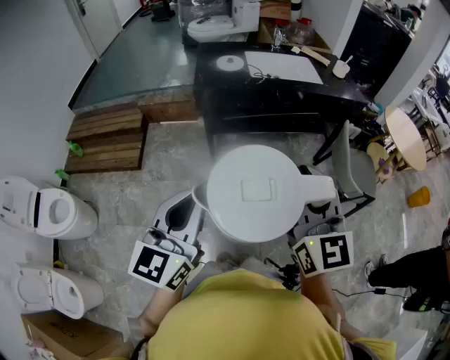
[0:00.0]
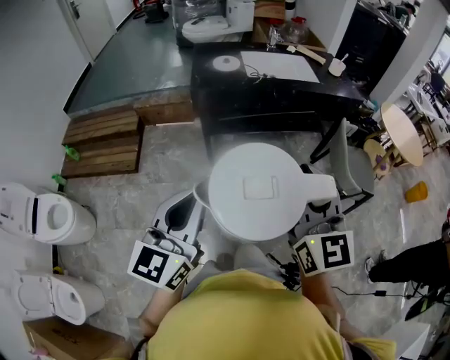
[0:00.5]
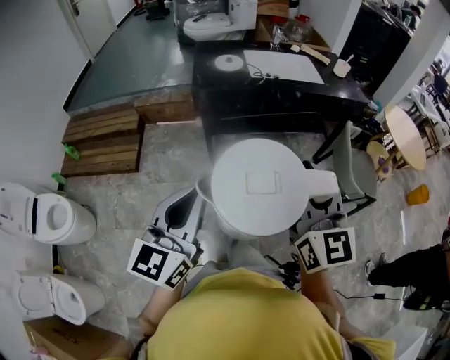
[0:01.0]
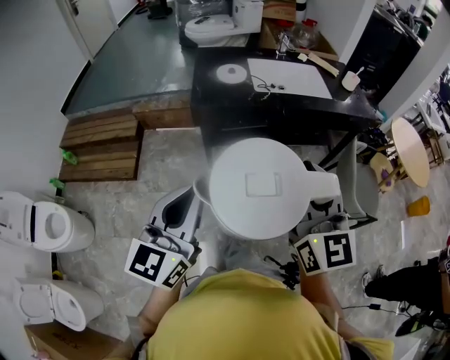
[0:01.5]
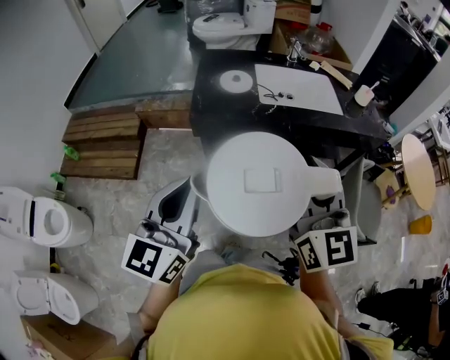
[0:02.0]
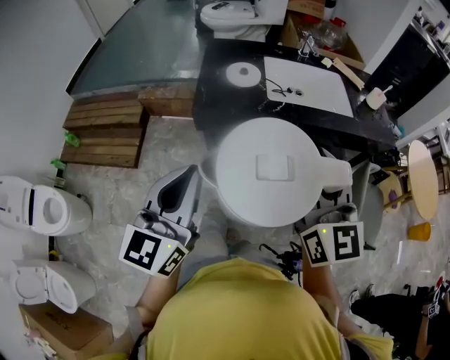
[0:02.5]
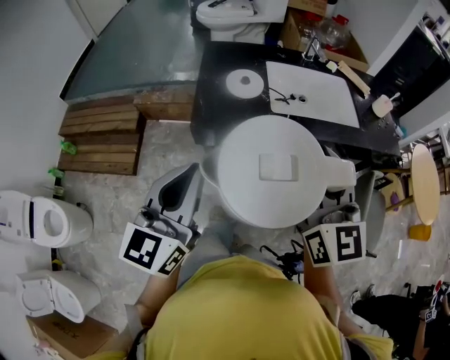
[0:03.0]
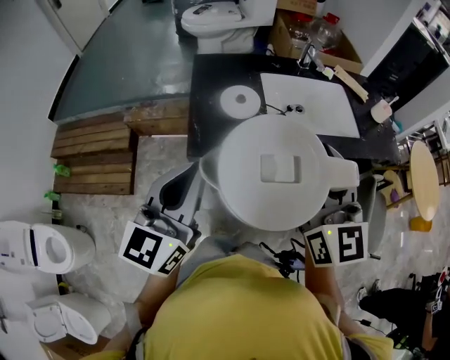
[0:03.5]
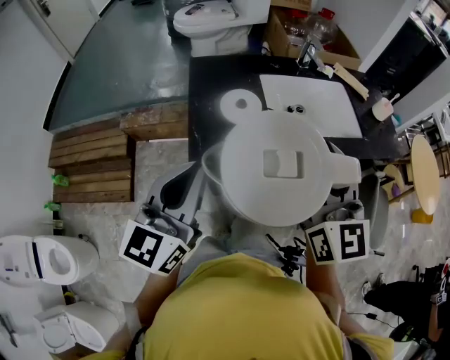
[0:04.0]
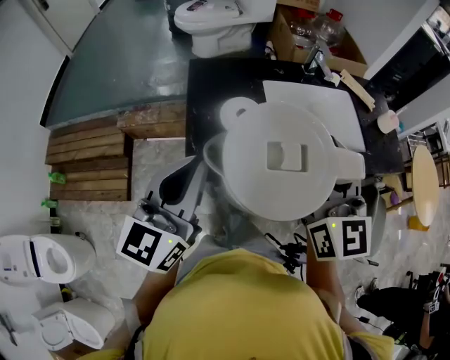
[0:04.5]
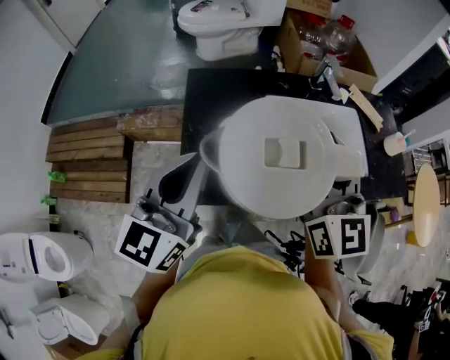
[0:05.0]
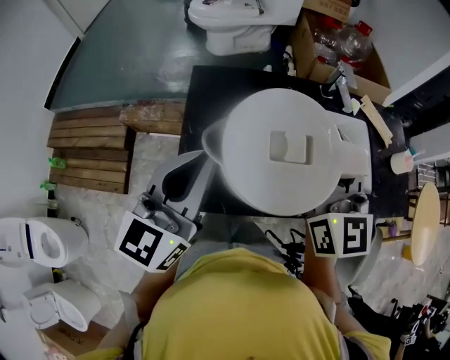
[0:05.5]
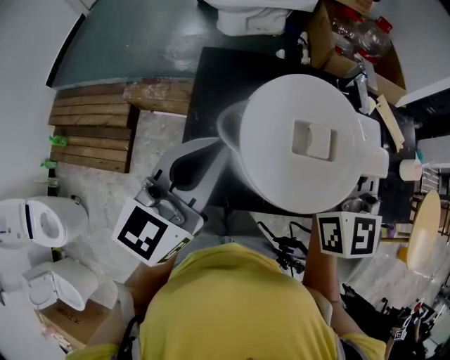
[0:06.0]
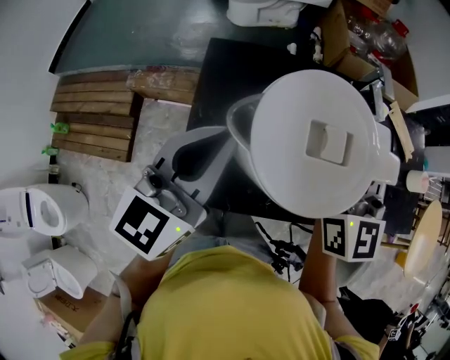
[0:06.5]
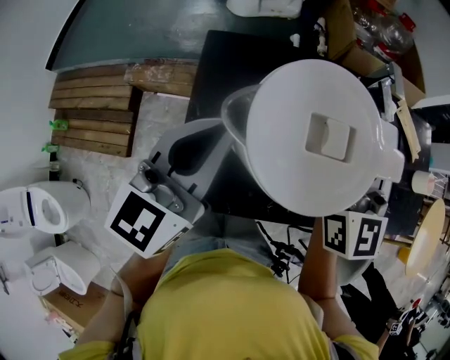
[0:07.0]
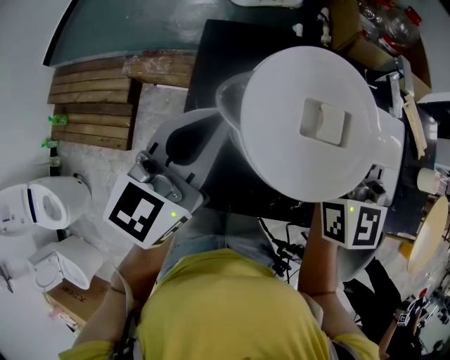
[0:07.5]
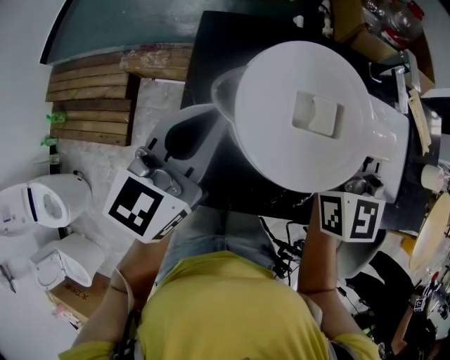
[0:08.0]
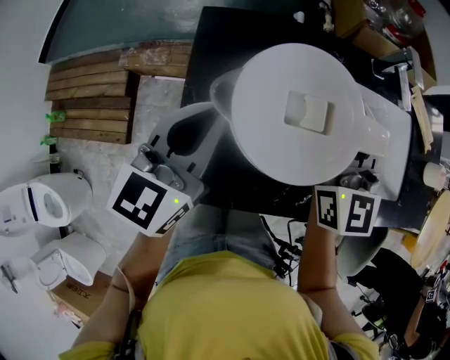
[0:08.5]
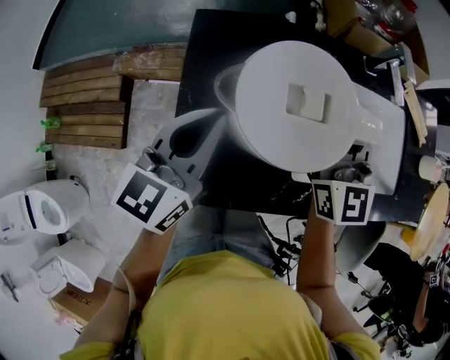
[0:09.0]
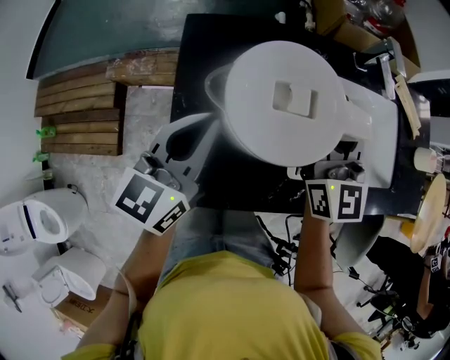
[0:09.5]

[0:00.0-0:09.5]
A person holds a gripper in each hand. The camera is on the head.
0:00.0 to 0:02.0: The grippers both shift forward by some 25 cm.
0:02.0 to 0:04.0: The two grippers go approximately 25 cm forward.
0:04.0 to 0:05.5: Both grippers travel together forward, some 20 cm.
0:05.5 to 0:07.5: Both grippers move forward and downward, approximately 10 cm.
0:07.5 to 0:09.5: The two grippers go roughly 5 cm downward.

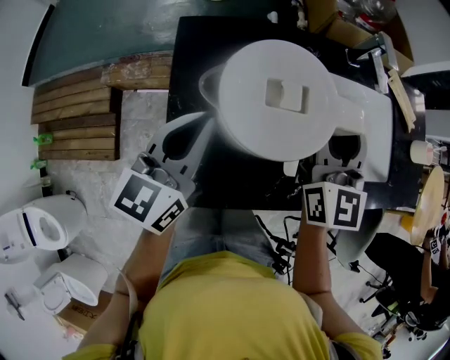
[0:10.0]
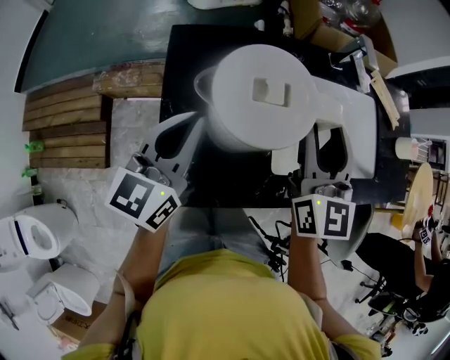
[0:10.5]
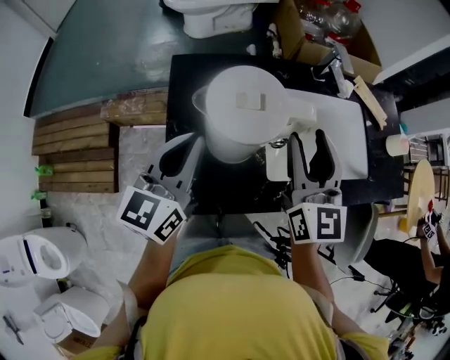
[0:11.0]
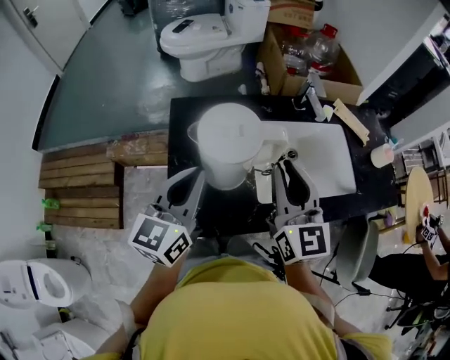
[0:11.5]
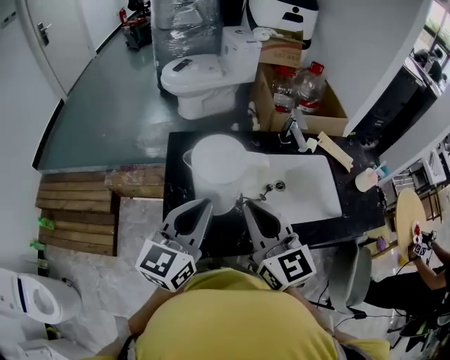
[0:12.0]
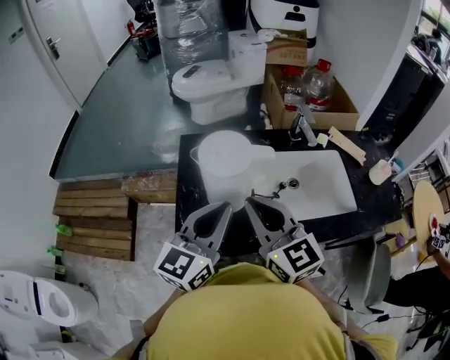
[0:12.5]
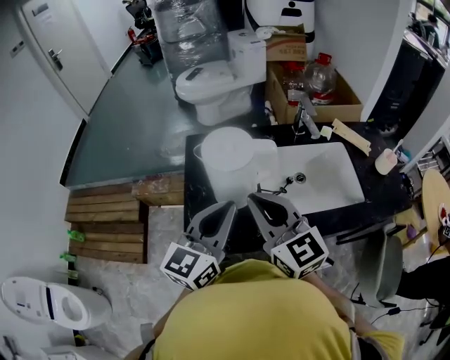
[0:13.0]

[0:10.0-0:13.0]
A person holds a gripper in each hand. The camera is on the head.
0:10.0 to 0:11.5: The left gripper heads upward, covering some 5 cm. Meanwhile the right gripper shifts roughly 10 cm backward and upward, and closes its fingers.
0:11.5 to 0:13.0: The right gripper heads backward and to the left, covering about 10 cm, and swivels roughly 20 degrees. Meanwhile the left gripper moves backward and to the right, about 10 cm.

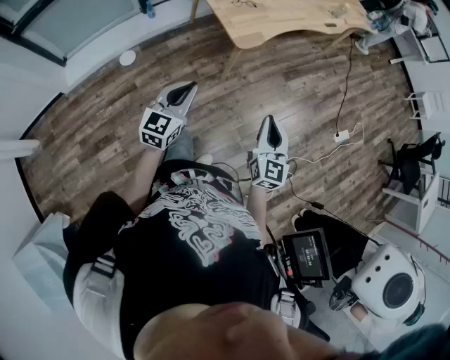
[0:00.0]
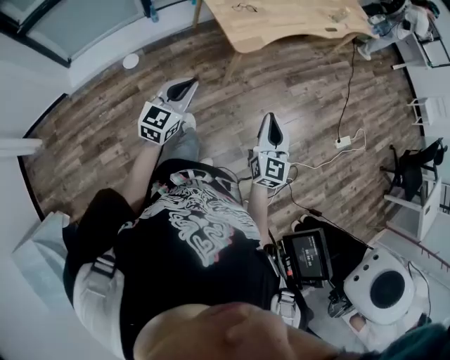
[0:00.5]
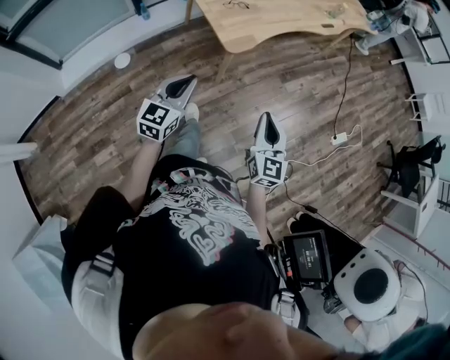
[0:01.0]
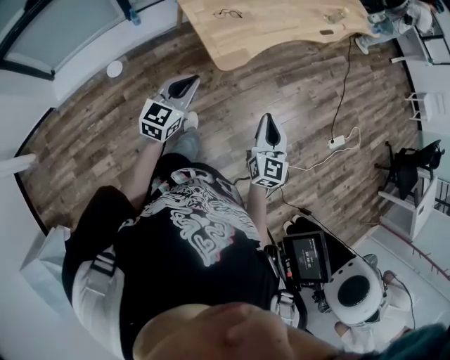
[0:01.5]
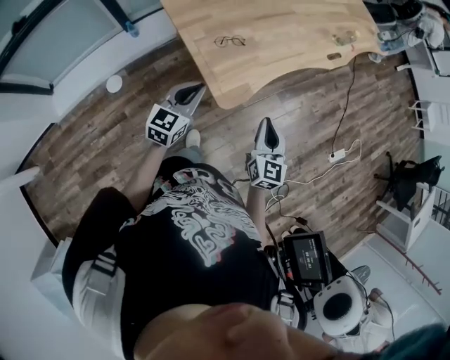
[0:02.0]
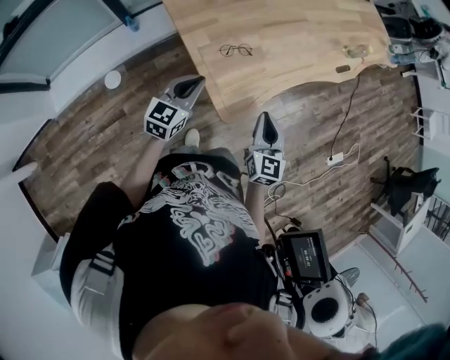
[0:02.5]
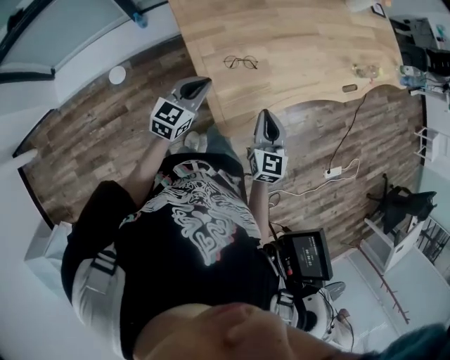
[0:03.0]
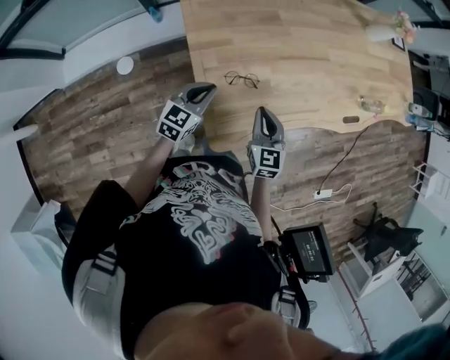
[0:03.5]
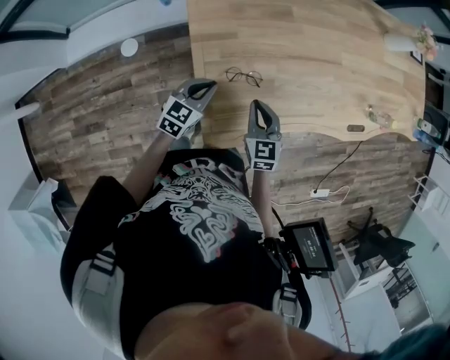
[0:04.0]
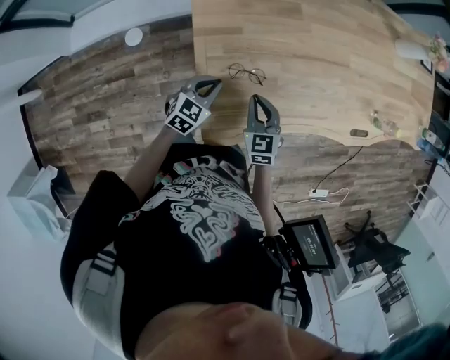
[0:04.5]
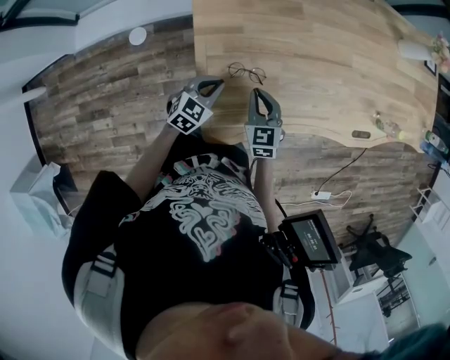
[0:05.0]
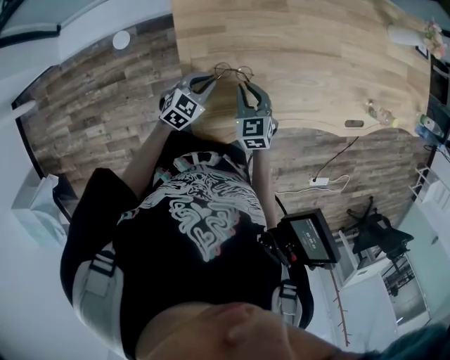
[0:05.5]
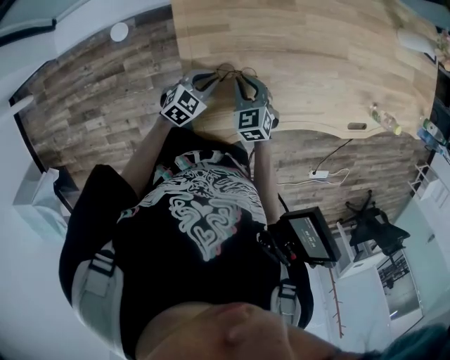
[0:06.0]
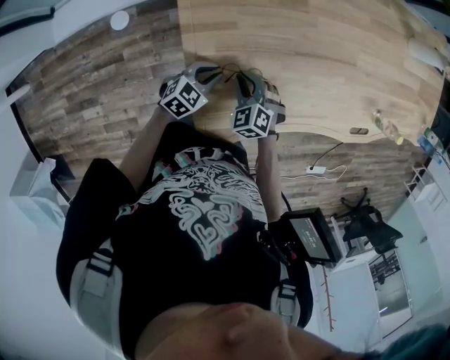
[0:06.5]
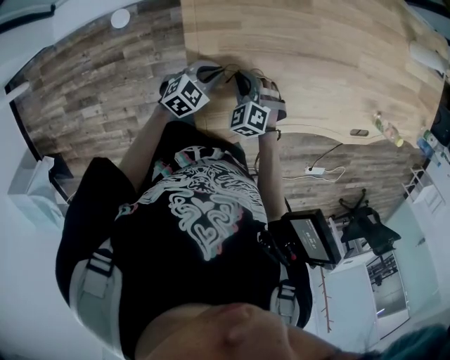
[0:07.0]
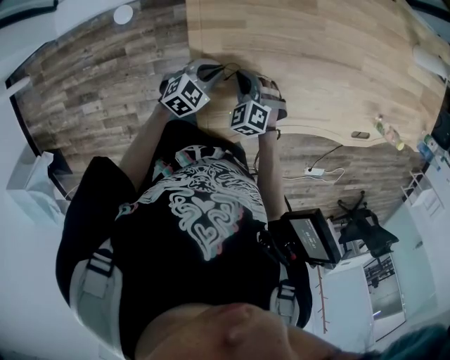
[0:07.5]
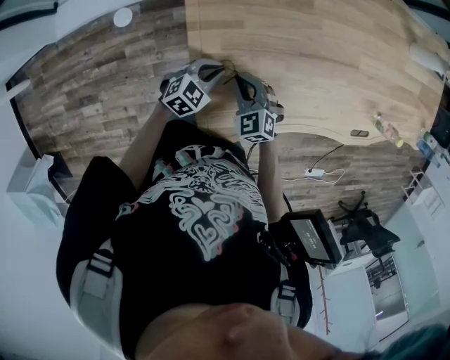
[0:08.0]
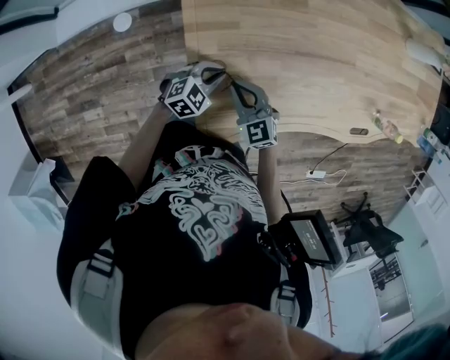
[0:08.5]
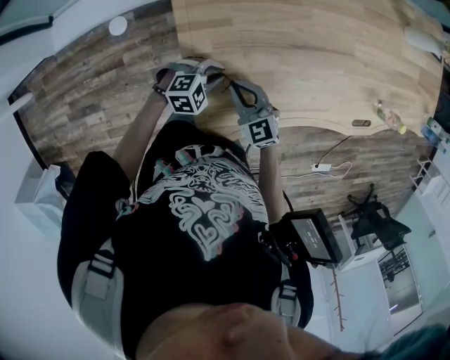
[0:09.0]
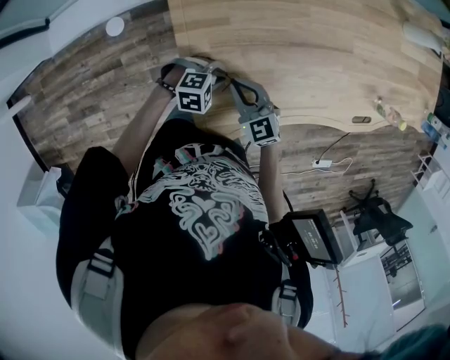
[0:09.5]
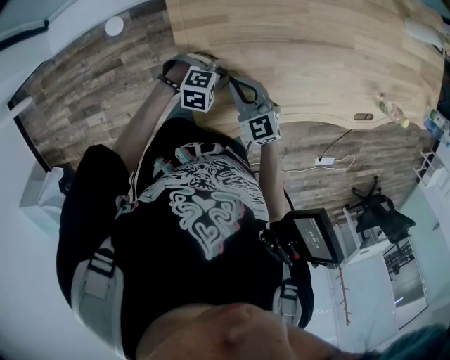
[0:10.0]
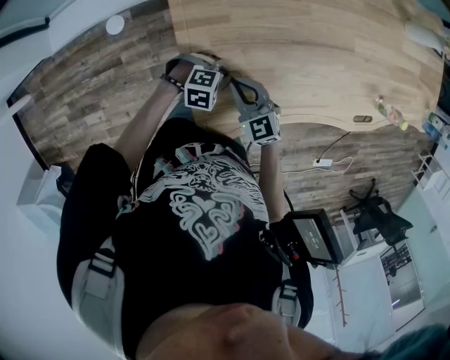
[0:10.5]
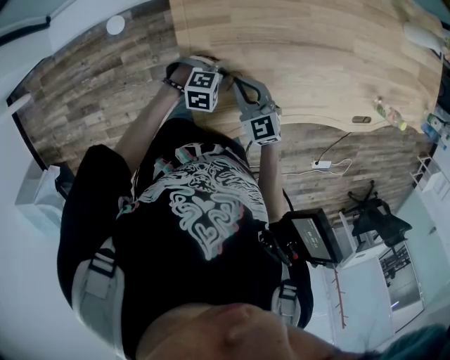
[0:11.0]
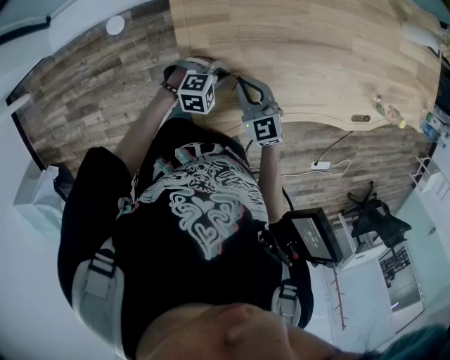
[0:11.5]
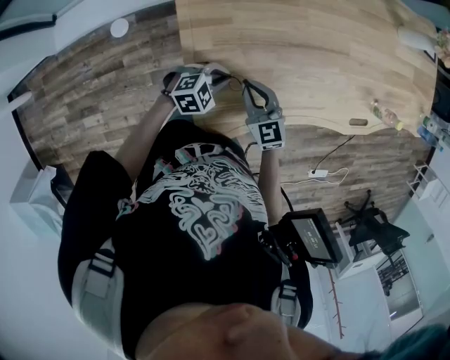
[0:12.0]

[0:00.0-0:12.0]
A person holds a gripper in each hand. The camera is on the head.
0:00.0 to 0:02.0: Both grippers travel together forward, about 40 cm.
0:02.0 to 0:04.0: The right gripper travels forward by some 30 cm, and swivels roughly 40 degrees; the left gripper shifts approximately 25 cm forward and downward, and changes its angle by some 20 degrees.
0:04.0 to 0:06.0: The left gripper goes about 10 cm downward. The right gripper goes about 10 cm downward and forward, and swivels approximately 30 degrees.
0:06.0 to 0:08.0: The right gripper shifts by some 5 cm.
0:08.0 to 0:10.0: The left gripper moves some 10 cm, and changes its angle by about 50 degrees, while the right gripper swivels roughly 20 degrees.
0:10.0 to 0:12.0: The left gripper moves upward, roughly 5 cm, and swivels about 30 degrees.

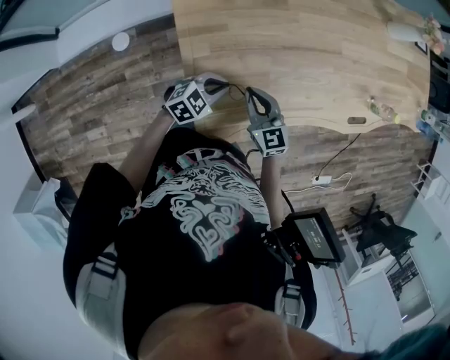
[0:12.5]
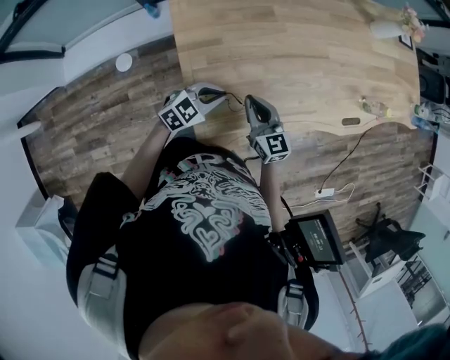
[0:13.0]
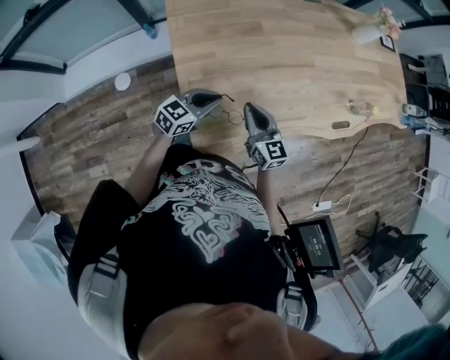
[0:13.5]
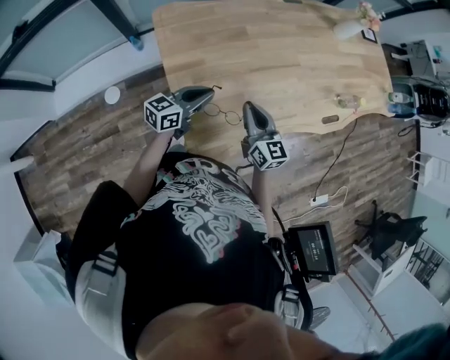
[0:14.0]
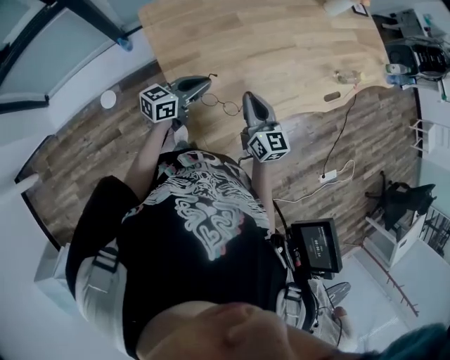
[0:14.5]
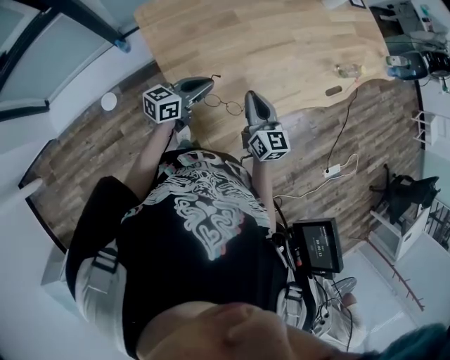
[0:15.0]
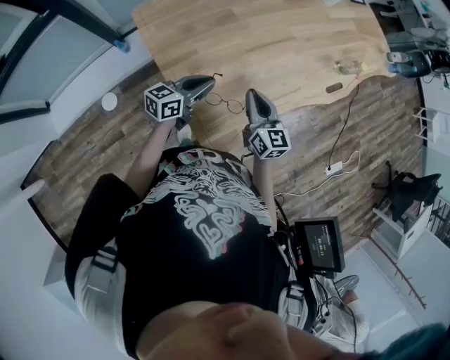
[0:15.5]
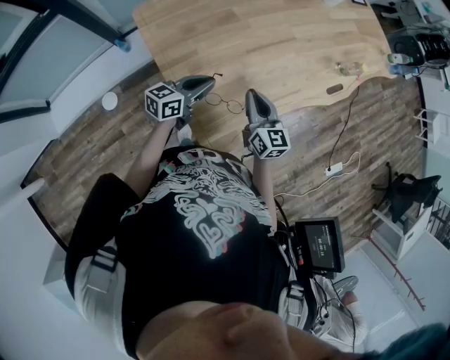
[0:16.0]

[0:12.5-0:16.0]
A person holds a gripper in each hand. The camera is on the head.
0:12.5 to 0:14.5: Both grippers move upward, about 15 cm. The right gripper rotates approximately 30 degrees. Meanwhile the left gripper tilts its fingers some 30 degrees upward.
0:14.5 to 0:16.0: The grippers move only a little.
